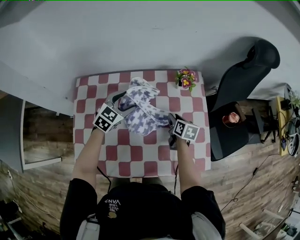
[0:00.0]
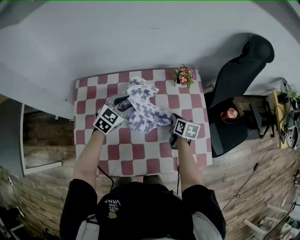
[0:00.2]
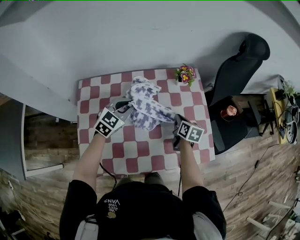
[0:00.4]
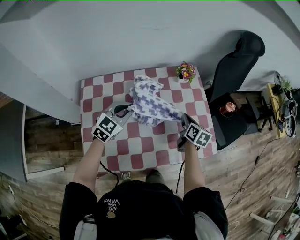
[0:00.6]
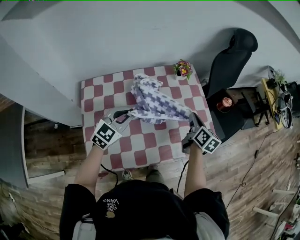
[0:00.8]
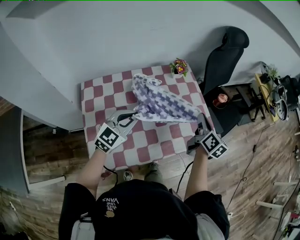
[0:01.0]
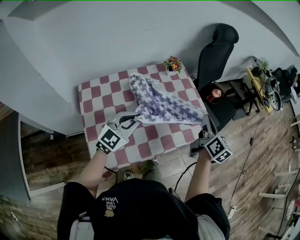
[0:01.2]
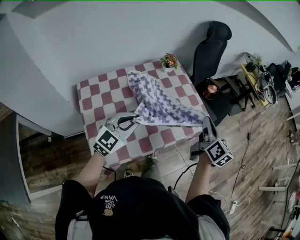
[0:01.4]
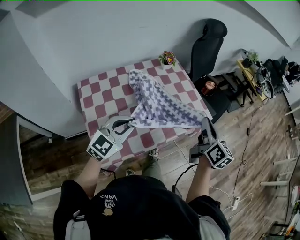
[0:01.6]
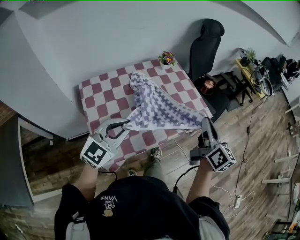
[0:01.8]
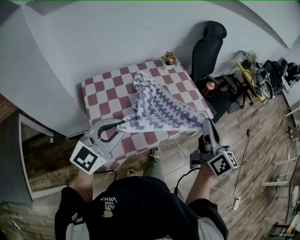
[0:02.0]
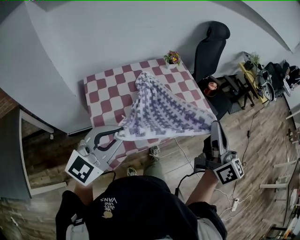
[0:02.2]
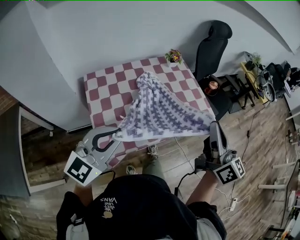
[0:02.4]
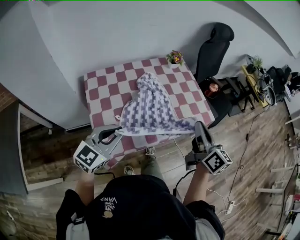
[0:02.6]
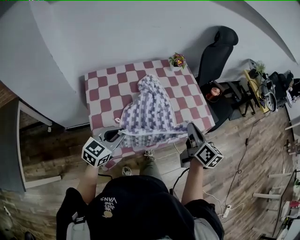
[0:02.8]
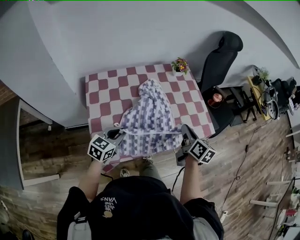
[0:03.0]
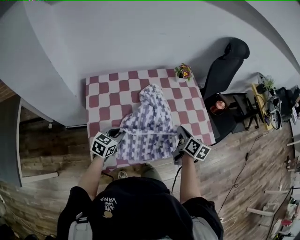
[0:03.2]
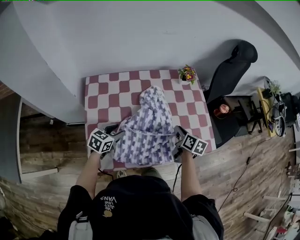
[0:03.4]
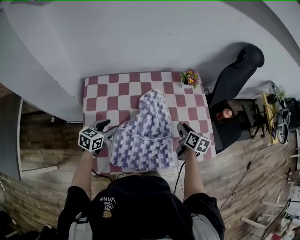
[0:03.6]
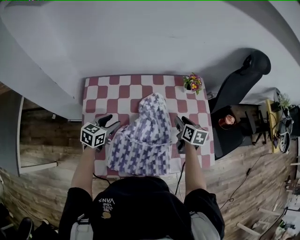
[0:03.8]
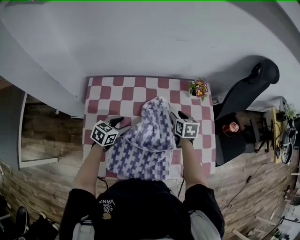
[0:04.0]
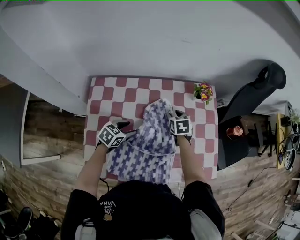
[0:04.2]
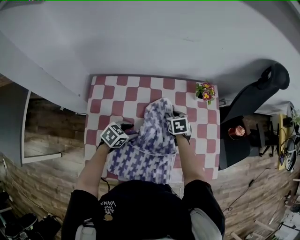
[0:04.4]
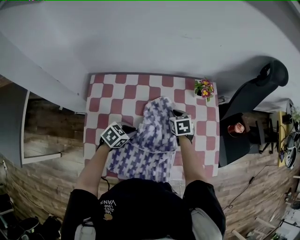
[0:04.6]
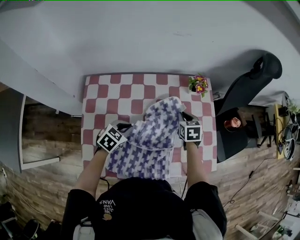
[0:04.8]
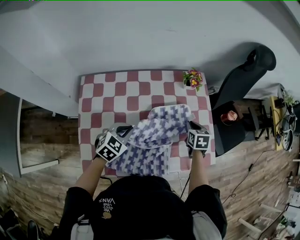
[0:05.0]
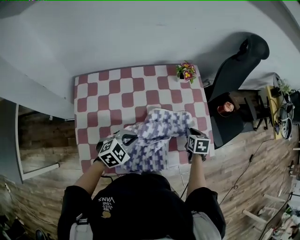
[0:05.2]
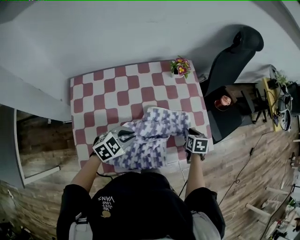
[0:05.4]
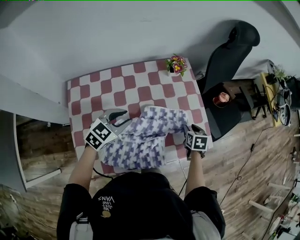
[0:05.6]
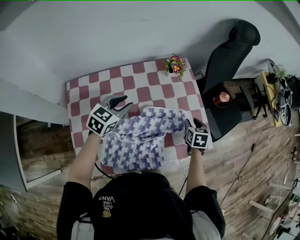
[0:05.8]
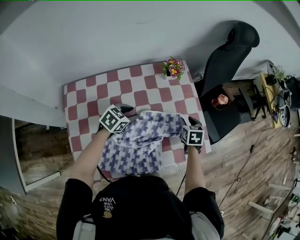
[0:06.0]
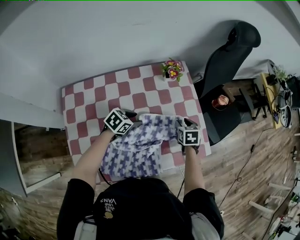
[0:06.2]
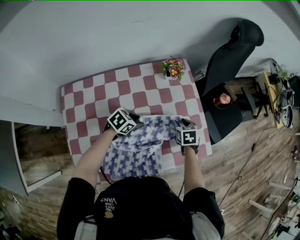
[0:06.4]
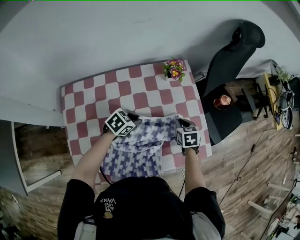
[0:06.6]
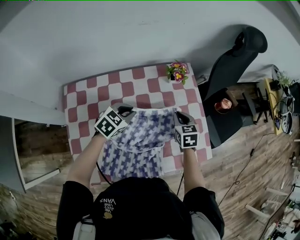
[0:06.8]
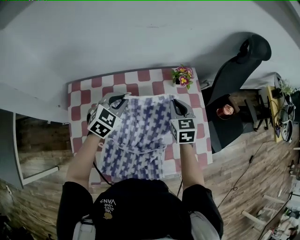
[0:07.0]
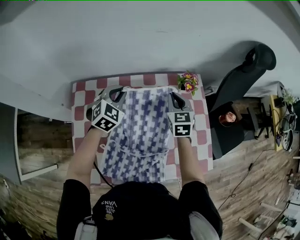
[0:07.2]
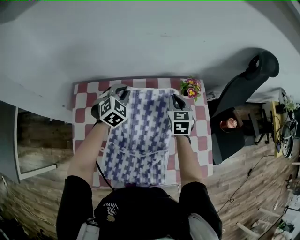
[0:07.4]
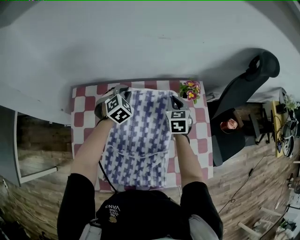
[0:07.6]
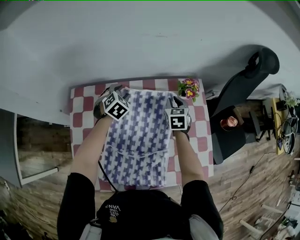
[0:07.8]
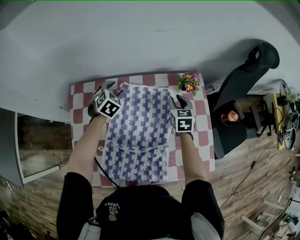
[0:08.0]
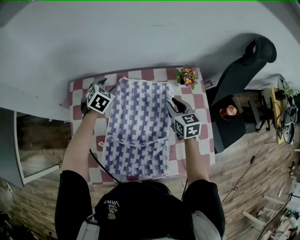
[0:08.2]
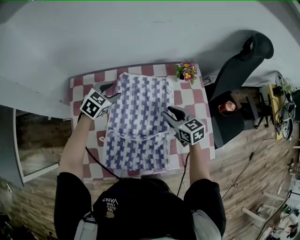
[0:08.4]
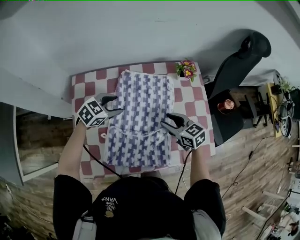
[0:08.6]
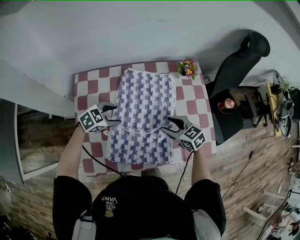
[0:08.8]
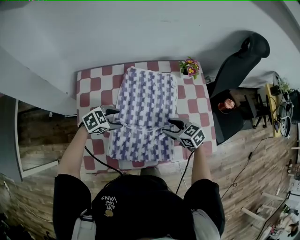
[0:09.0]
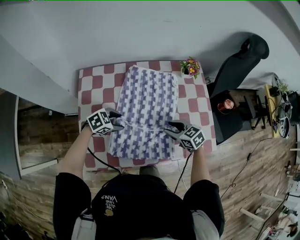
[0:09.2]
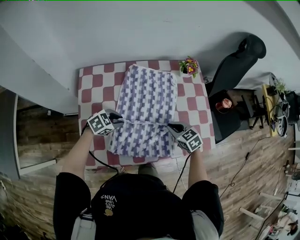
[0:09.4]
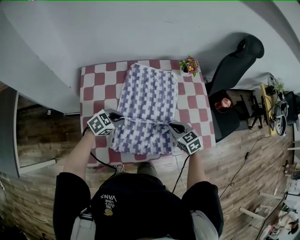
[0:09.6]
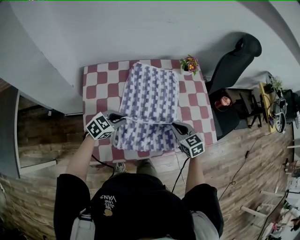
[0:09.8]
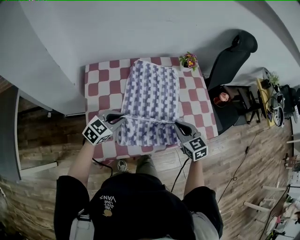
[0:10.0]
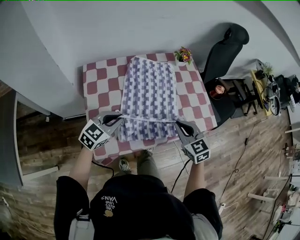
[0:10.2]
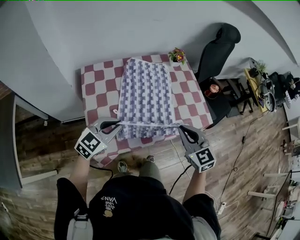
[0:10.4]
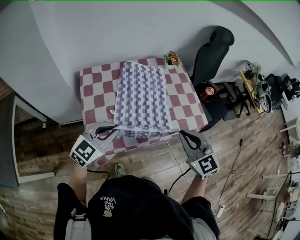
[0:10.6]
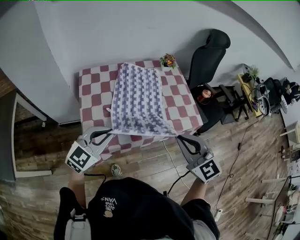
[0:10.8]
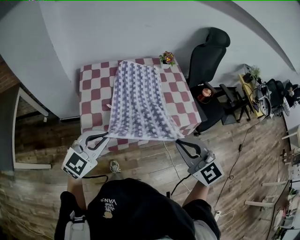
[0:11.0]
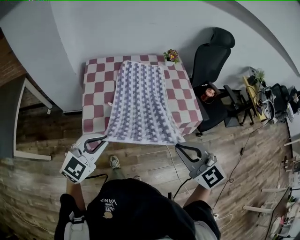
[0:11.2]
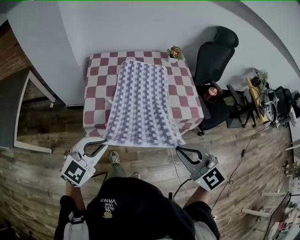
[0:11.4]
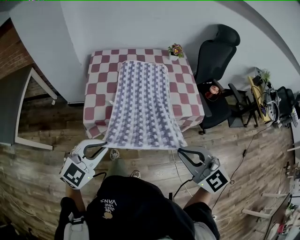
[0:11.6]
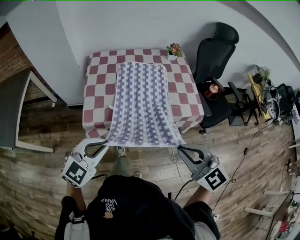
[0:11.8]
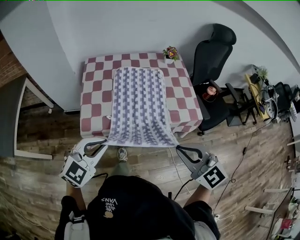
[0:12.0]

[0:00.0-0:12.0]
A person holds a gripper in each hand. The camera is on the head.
0.0 to 1.6 s: The left gripper moves about 35 cm, turns by approximately 40 degrees, and closes its fingers. The right gripper ends up roughly 40 cm from where it was, points its fingers roughly 40 degrees further upward, and closes up.
1.6 to 3.0 s: The two grippers go approximately 15 cm downward and to the left. The right gripper swivels some 20 degrees. Meanwhile the left gripper changes its angle by some 30 degrees.
3.0 to 4.4 s: The right gripper moves forward, downward and to the left, approximately 35 cm, angles its fingers downward, by roughly 40 degrees, and opens its fingers. Meanwhile the left gripper is displaced forward and downward by approximately 20 cm, changes its angle by about 20 degrees, and opens up.
4.4 to 6.0 s: The left gripper heads forward and to the right, covering approximately 10 cm, and closes, then opens again. Meanwhile the right gripper travels to the right by some 25 cm, turns by approximately 30 degrees, and closes and opens again.
6.0 to 7.6 s: The right gripper moves up and down over roughly 15 cm, changing direction 2 times, rotates some 30 degrees, and closes up. Meanwhile the left gripper swings up and down, some 15 cm each way, with 2 reversals, and turns by roughly 40 degrees.
7.6 to 9.0 s: The right gripper changes place by roughly 25 cm, swivels roughly 40 degrees, and opens. The left gripper ends up roughly 25 cm from where it was, turns by about 40 degrees, and opens up.
9.0 to 10.4 s: Both grippers move upward, roughly 15 cm. The left gripper turns by some 30 degrees, and closes up; the right gripper swivels about 40 degrees, and closes its fingers.
10.4 to 12.0 s: The grippers both shift backward by approximately 20 cm. The right gripper turns by some 20 degrees.

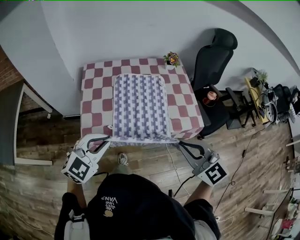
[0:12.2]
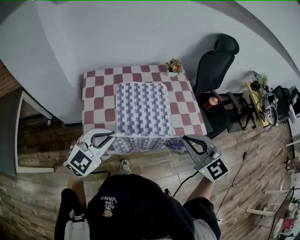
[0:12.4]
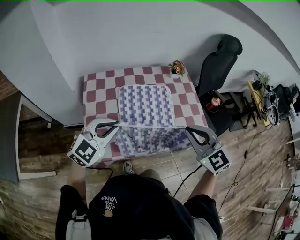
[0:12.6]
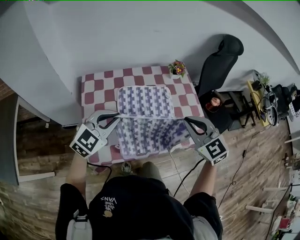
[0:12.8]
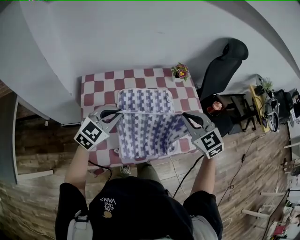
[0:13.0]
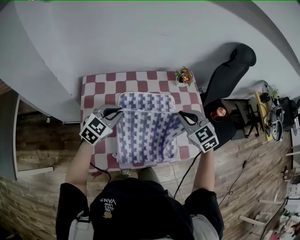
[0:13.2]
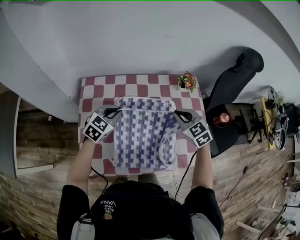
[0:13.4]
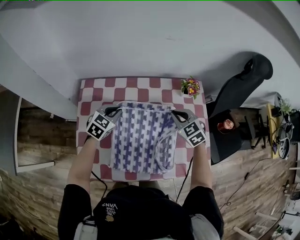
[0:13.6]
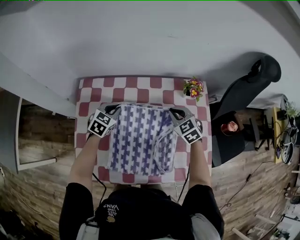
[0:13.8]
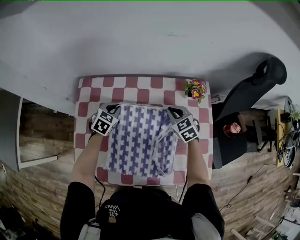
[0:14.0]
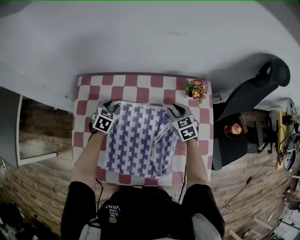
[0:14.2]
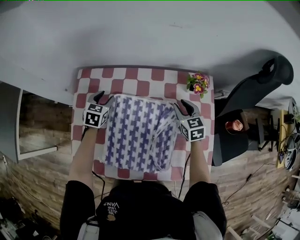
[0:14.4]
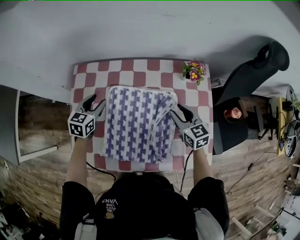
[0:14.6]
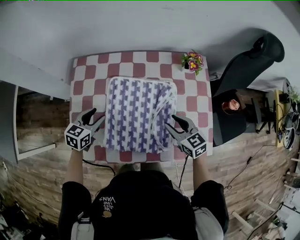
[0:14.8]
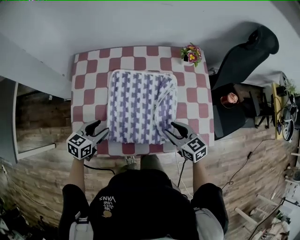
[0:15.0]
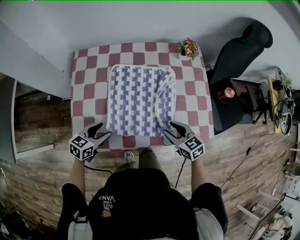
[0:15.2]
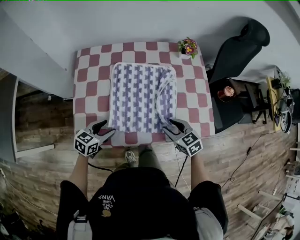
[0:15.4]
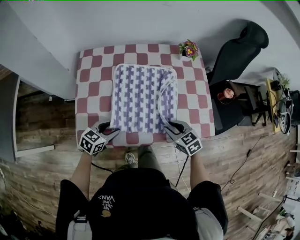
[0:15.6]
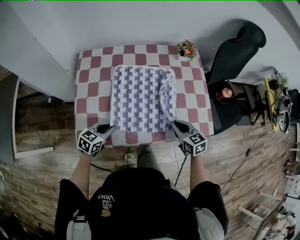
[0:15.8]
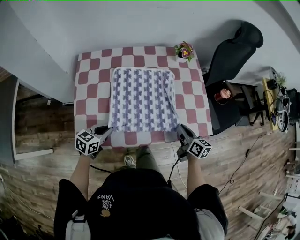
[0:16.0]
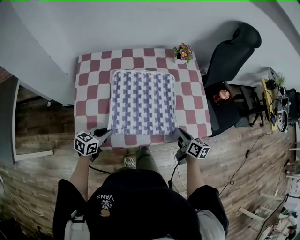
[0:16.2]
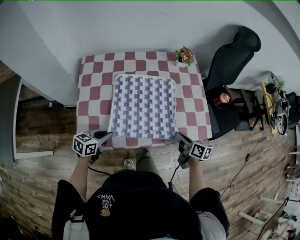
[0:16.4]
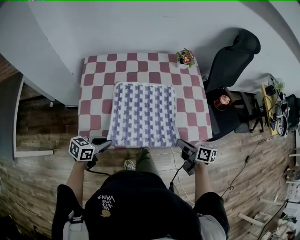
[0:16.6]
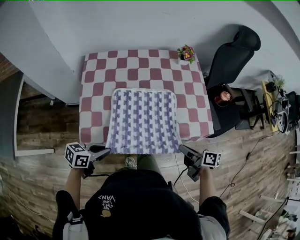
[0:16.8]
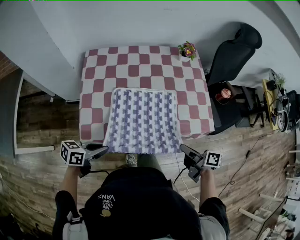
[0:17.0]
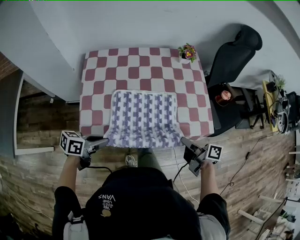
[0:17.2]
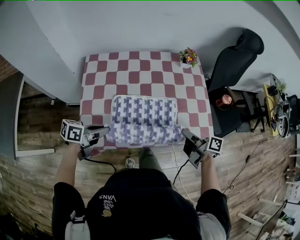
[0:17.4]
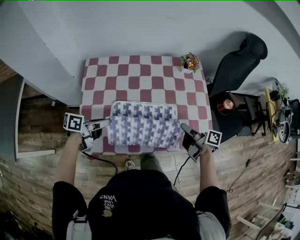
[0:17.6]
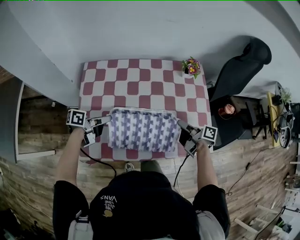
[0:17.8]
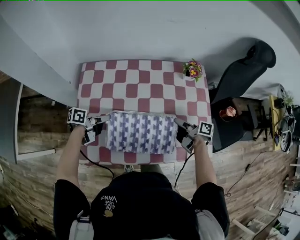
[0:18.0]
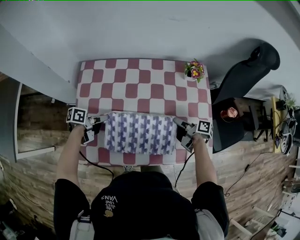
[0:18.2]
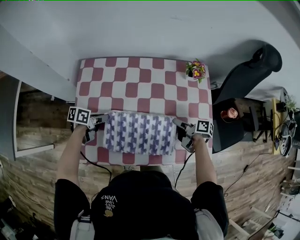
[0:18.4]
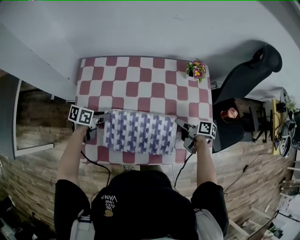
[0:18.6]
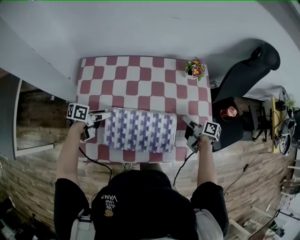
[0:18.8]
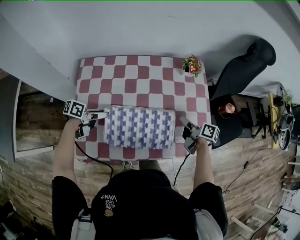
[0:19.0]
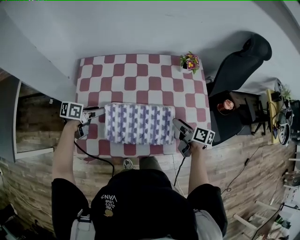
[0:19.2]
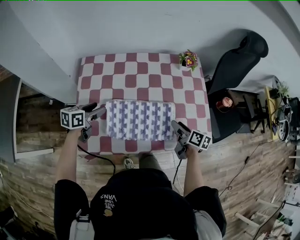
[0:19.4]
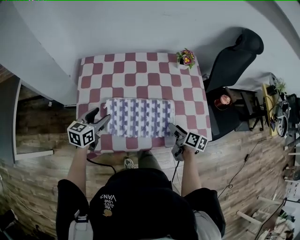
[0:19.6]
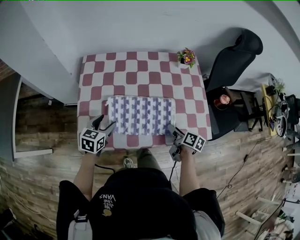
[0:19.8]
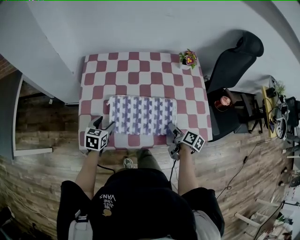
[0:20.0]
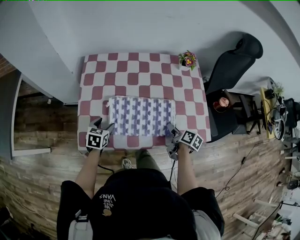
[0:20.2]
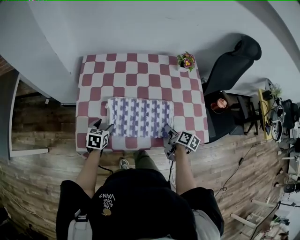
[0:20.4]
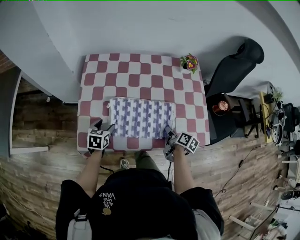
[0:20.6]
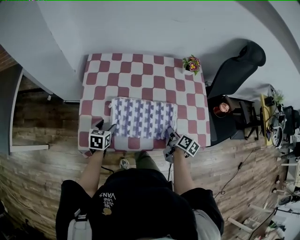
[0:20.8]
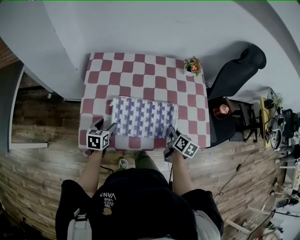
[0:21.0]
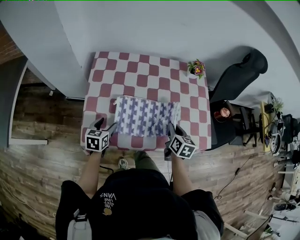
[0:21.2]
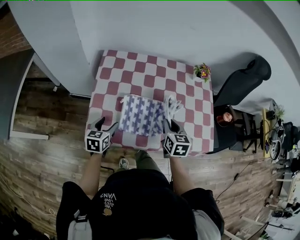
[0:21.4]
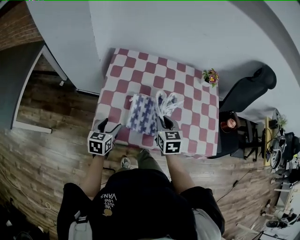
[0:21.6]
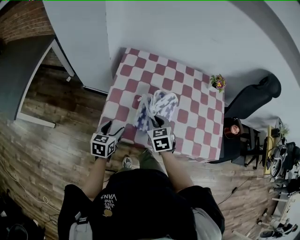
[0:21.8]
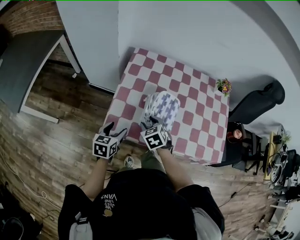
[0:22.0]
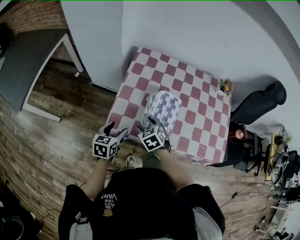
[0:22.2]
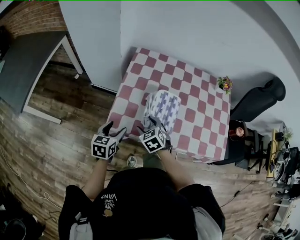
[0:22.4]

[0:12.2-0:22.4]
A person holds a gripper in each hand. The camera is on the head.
12.2 to 13.6 s: The left gripper moves forward and downward, approximately 40 cm, and swivels roughly 30 degrees. Meanwhile the right gripper goes roughly 40 cm forward.
13.6 to 15.2 s: Both grippers travel together backward, roughly 25 cm. The left gripper turns by some 30 degrees, and opens its fingers. The right gripper changes its angle by roughly 30 degrees, and opens.
15.2 to 16.6 s: The right gripper goes some 5 cm to the right, moves approximately 10 cm forward and comes back, rolls clockwise, seen from behind, by some 50 degrees, and closes up. The left gripper closes up.
16.6 to 18.0 s: The grippers both shift forward by approximately 20 cm. The right gripper changes its angle by roughly 20 degrees, while the left gripper rotates some 40 degrees.
18.0 to 19.4 s: The left gripper shifts by approximately 5 cm, changes its angle by about 40 degrees, and opens up. Meanwhile the right gripper moves backward, some 5 cm, turns by some 30 degrees, and opens its fingers.
19.4 to 21.0 s: The right gripper closes its fingers; the left gripper shifts approximately 10 cm backward and downward, and changes its angle by about 20 degrees.
21.0 to 22.4 s: The right gripper is displaced to the left by about 35 cm, rotates around the line of its fingers by roughly 70 degrees, counterclockwise from behind, and opens its fingers, while the left gripper heads backward, to the left and upward, covering some 15 cm.

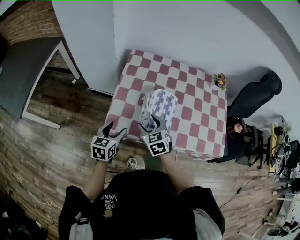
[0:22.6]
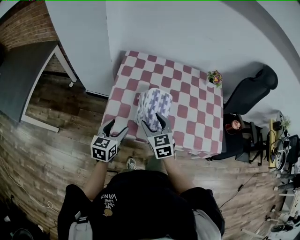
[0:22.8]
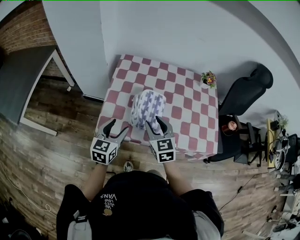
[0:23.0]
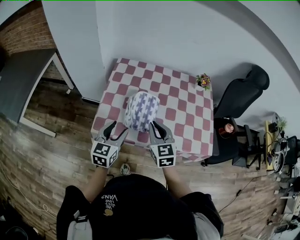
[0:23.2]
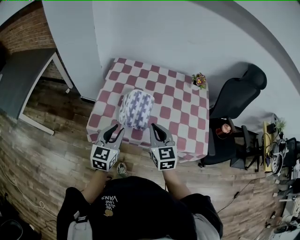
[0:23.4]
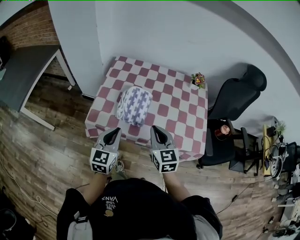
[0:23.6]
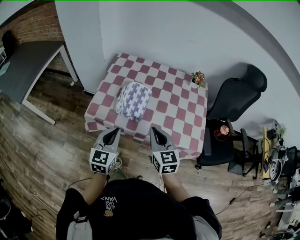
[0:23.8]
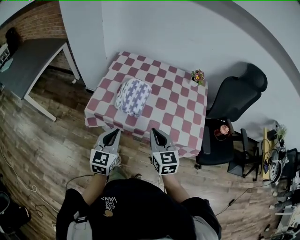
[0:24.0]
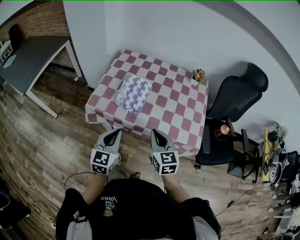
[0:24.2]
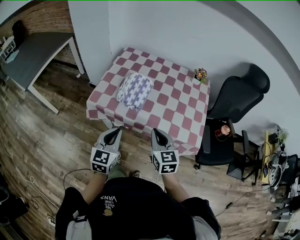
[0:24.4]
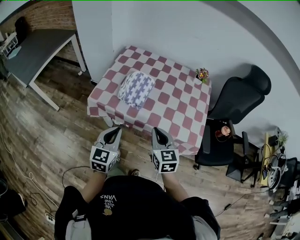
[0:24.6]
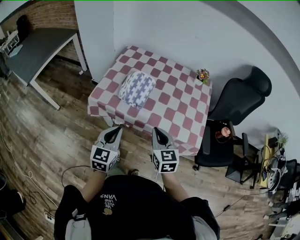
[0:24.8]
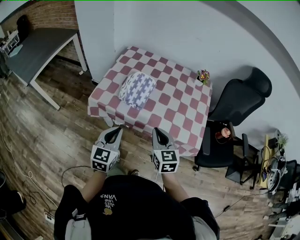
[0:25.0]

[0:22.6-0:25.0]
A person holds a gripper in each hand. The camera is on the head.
22.6 to 23.8 s: Both grippers move to the right, backward and upward, approximately 25 cm. The right gripper rotates approximately 20 degrees, and closes its fingers. Meanwhile the left gripper changes its angle by approximately 20 degrees, and closes up.
23.8 to 25.0 s: Both grippers move backward, roughly 5 cm.
